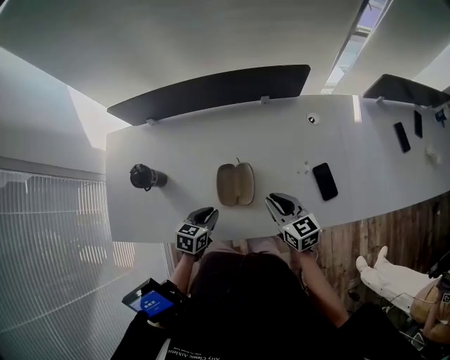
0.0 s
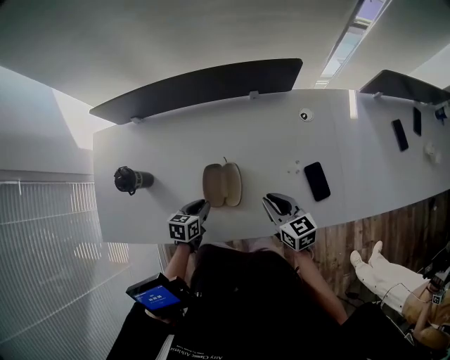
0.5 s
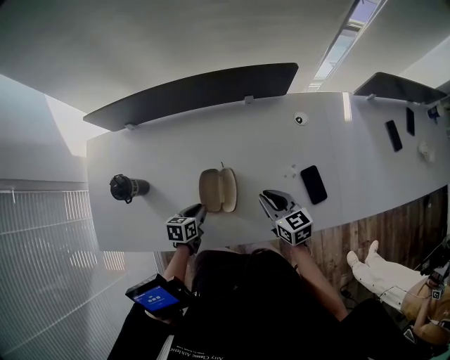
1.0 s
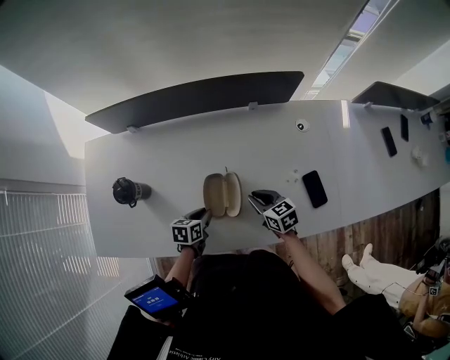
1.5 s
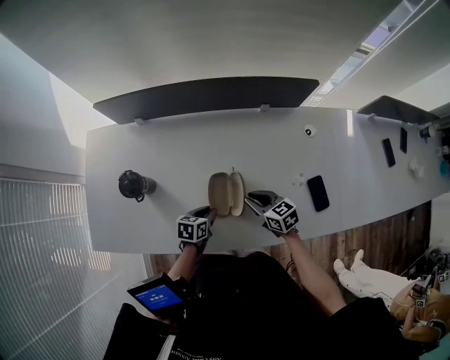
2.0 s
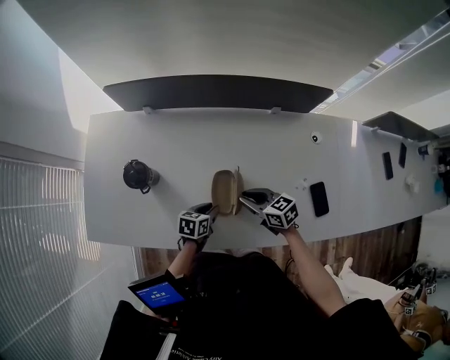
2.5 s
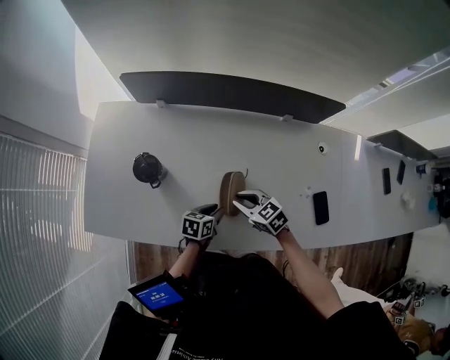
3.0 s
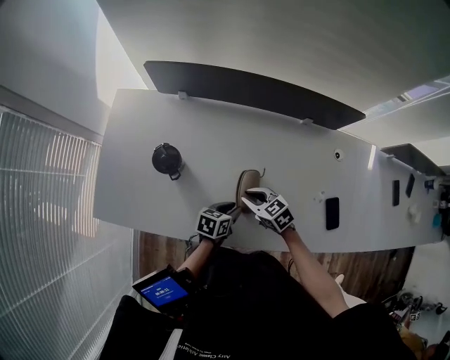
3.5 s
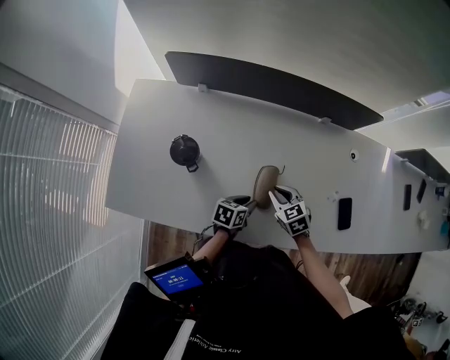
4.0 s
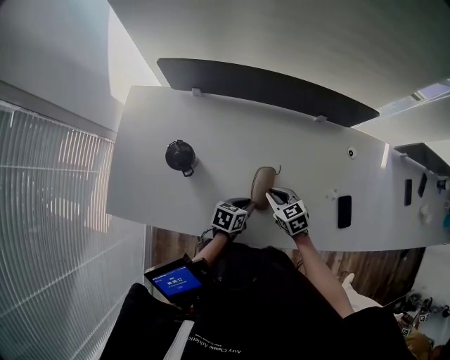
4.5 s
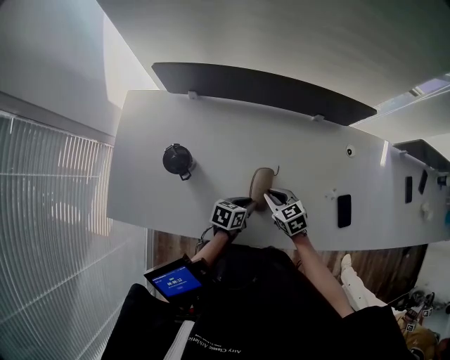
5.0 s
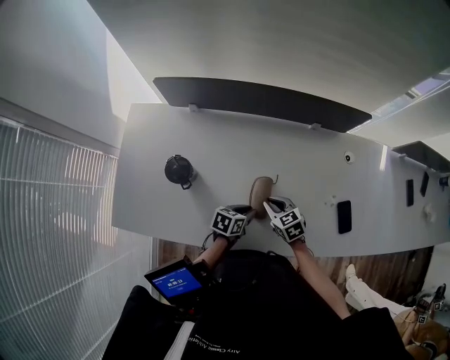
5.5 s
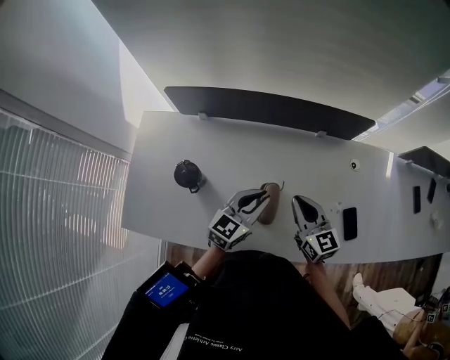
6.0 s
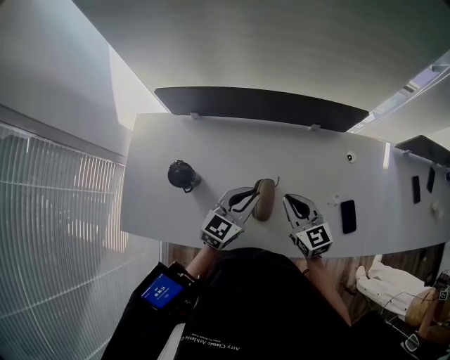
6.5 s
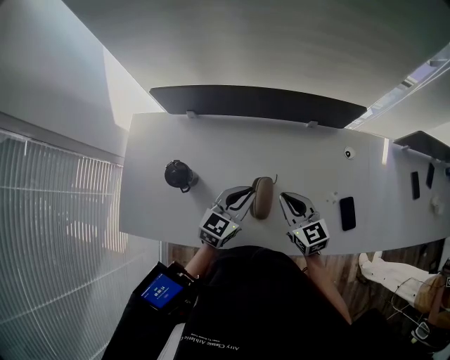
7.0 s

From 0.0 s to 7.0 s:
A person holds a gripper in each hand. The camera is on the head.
From 0.0 s to 2.0 s: The right gripper shifts approximately 10 cm downward and to the left. Meanwhile the left gripper travels downward by some 10 cm.
From 2.0 s to 3.5 s: The right gripper changes place by some 15 cm, and turns by approximately 20 degrees.
From 3.5 s to 5.0 s: There are only small adjustments of the grippers.
From 5.0 s to 7.0 s: Both grippers travel together upward, some 15 cm. The right gripper changes its angle by about 20 degrees. Meanwhile the left gripper swivels about 40 degrees.

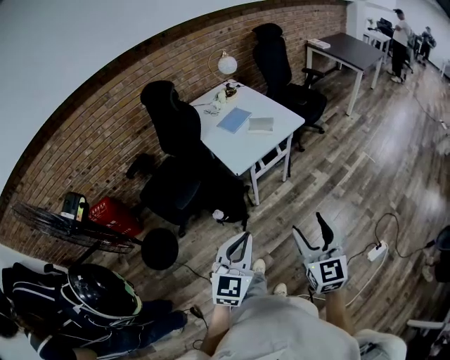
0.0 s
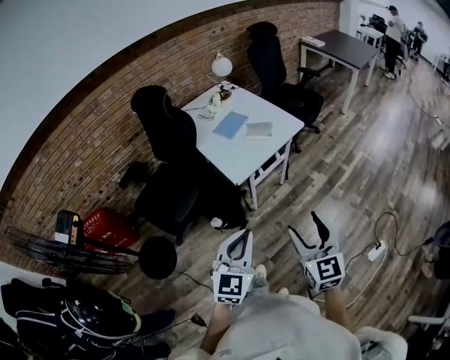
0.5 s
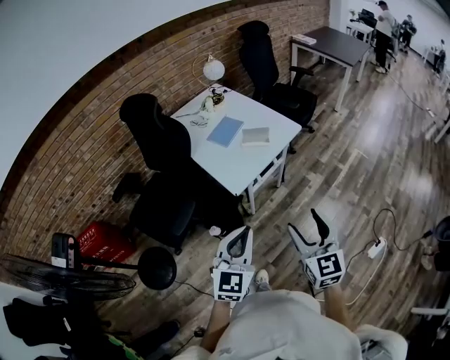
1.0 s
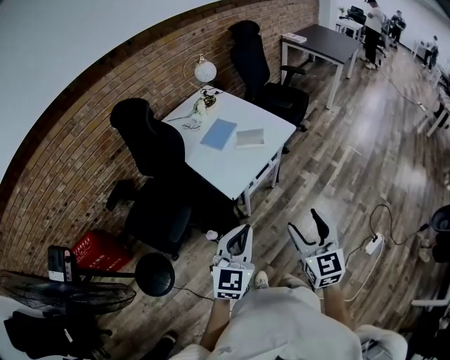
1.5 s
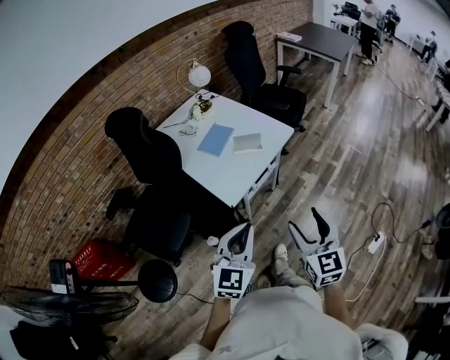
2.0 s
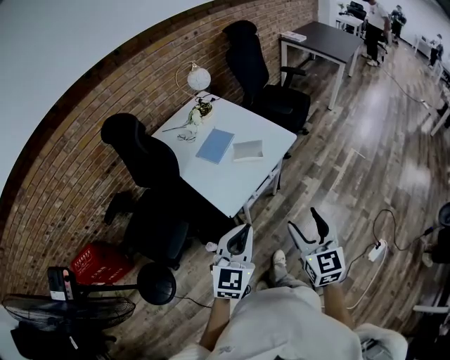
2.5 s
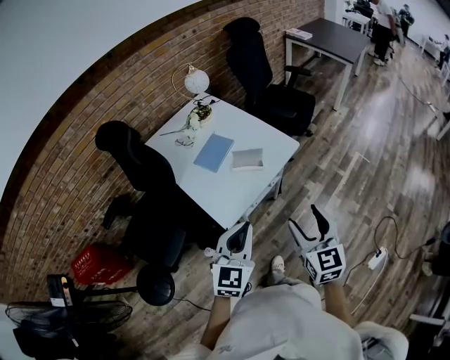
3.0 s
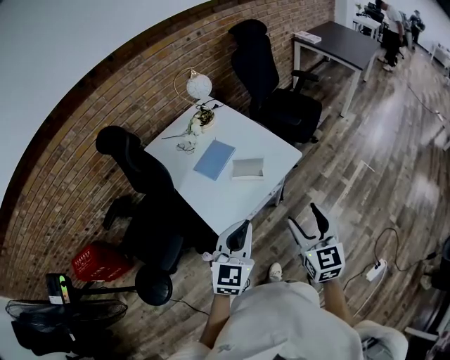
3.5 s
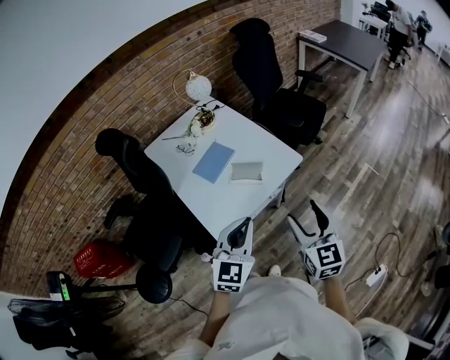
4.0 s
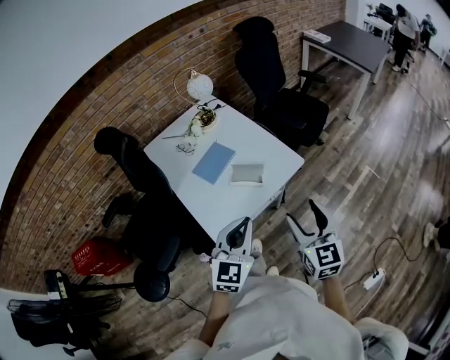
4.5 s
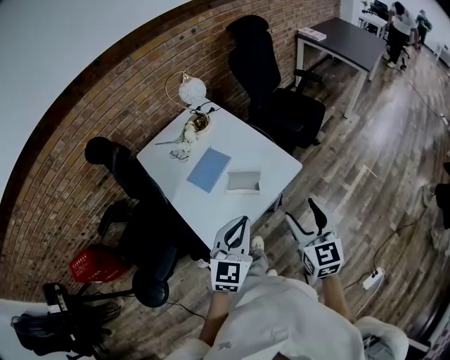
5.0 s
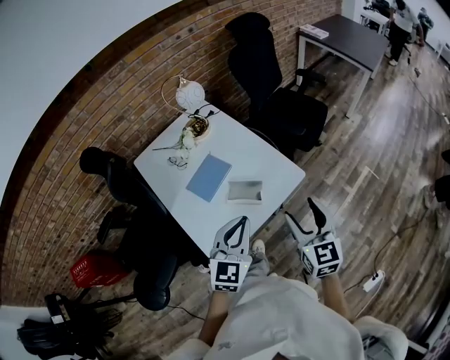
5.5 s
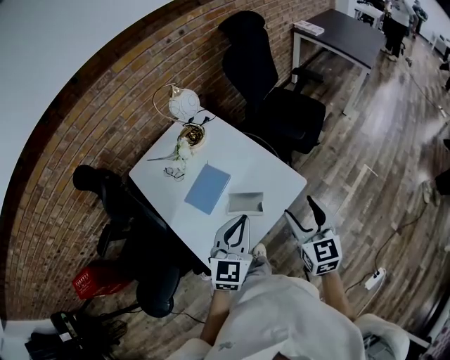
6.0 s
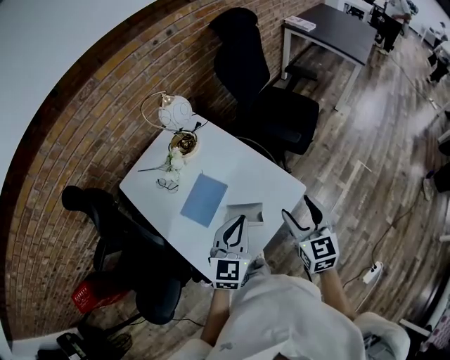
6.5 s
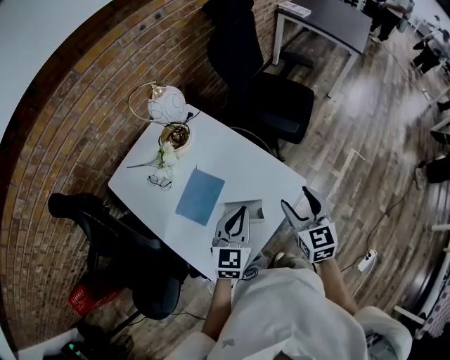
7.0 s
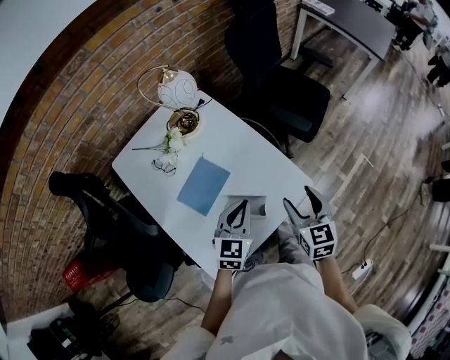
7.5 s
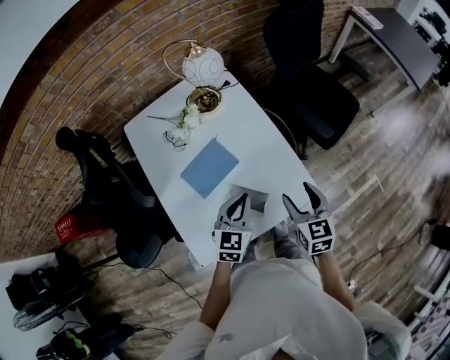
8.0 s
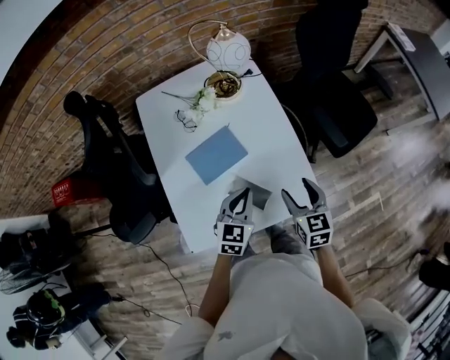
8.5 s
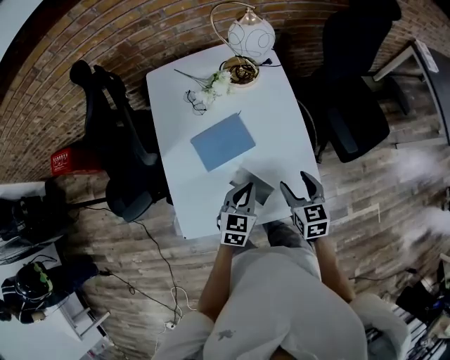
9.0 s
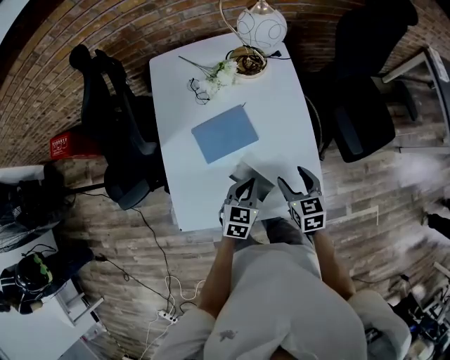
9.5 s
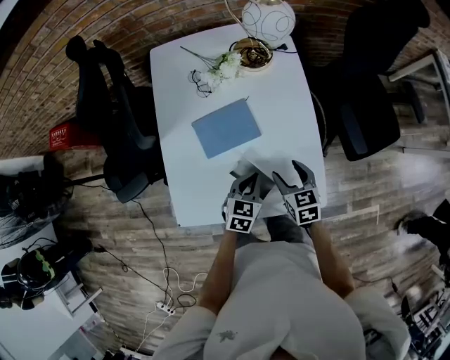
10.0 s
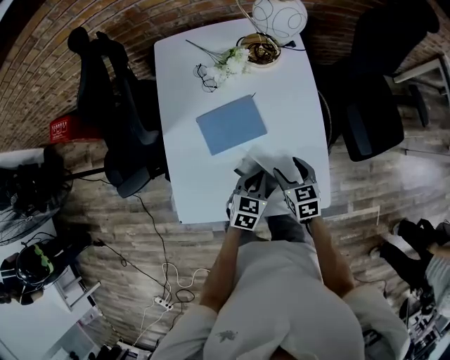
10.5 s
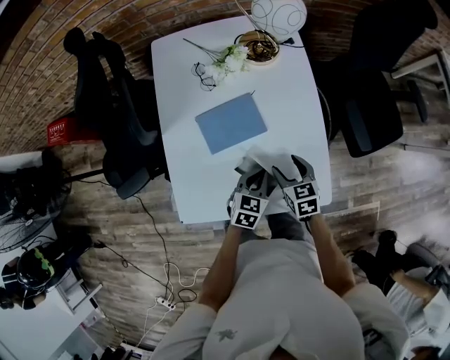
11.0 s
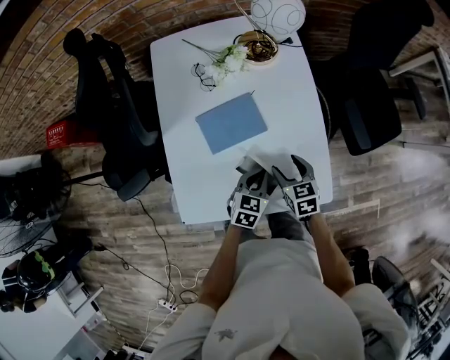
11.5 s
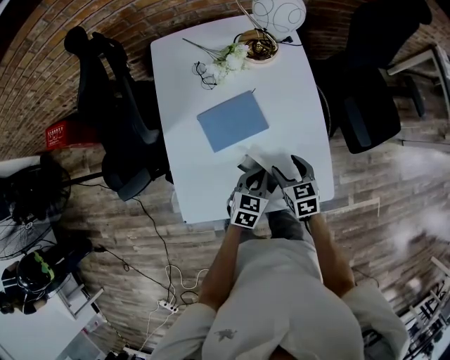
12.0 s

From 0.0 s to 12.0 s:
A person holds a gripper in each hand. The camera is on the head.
From 0.0 s to 2.0 s: Both grippers travel together forward, approximately 20 cm.
From 2.0 s to 4.0 s: The right gripper is displaced forward by roughly 25 cm. The left gripper shifts some 25 cm forward and to the right.
From 4.0 s to 6.0 s: Both grippers travel together forward, approximately 20 cm.
From 6.0 s to 8.0 s: The right gripper is displaced forward and downward by roughly 20 cm, and swivels about 20 degrees, while the left gripper heads downward and forward, covering about 20 cm, and changes its angle by about 20 degrees.
From 8.0 s to 10.0 s: The left gripper heads downward, covering some 15 cm, and changes its angle by some 20 degrees, while the right gripper moves downward and forward, roughly 15 cm, and turns by some 30 degrees.
From 10.0 s to 12.0 s: There are only small adjustments of the grippers.

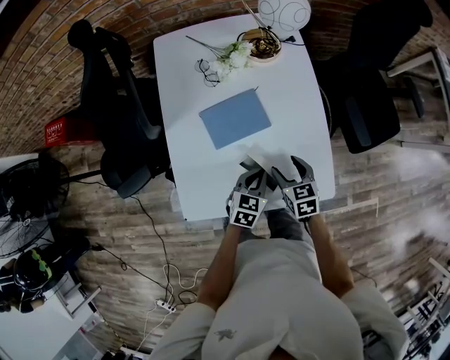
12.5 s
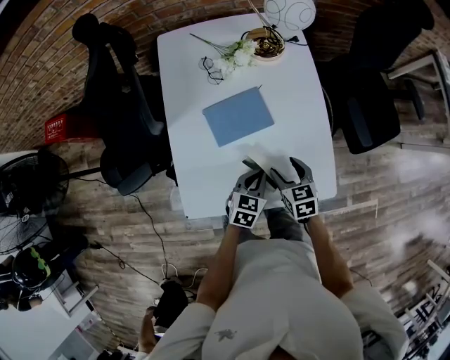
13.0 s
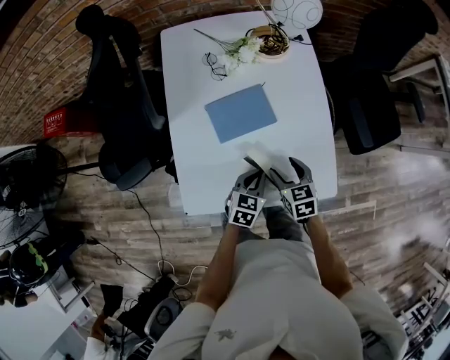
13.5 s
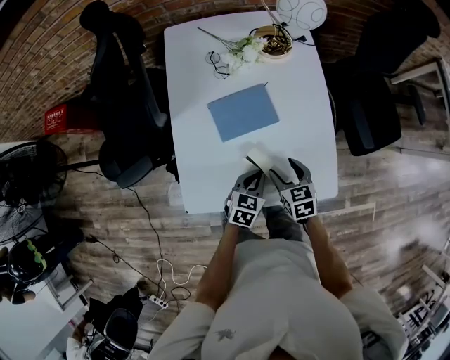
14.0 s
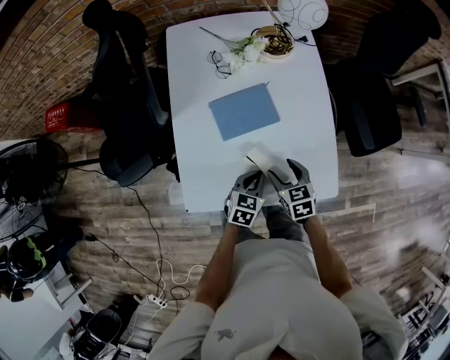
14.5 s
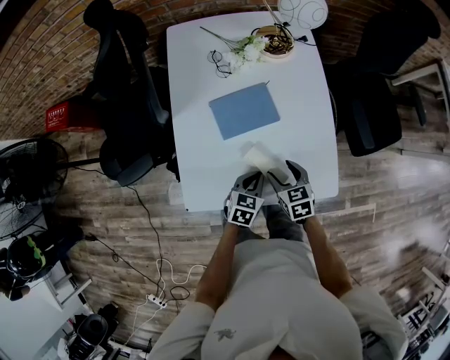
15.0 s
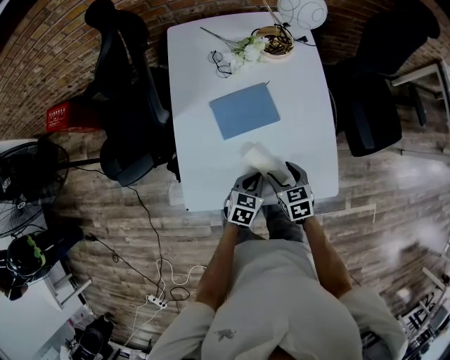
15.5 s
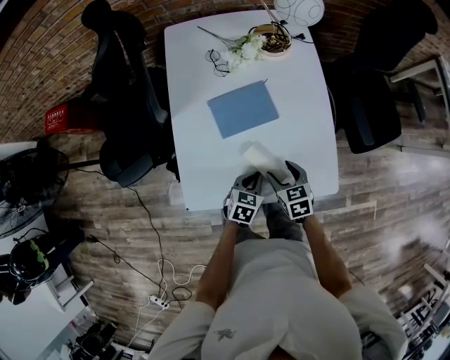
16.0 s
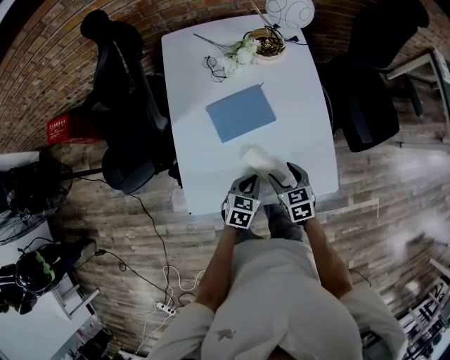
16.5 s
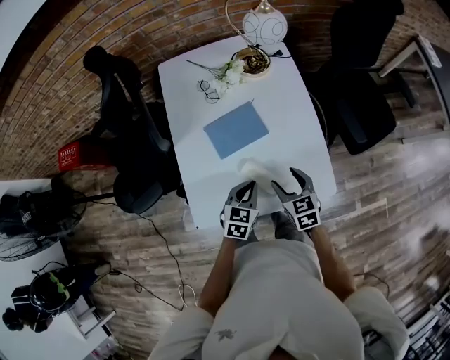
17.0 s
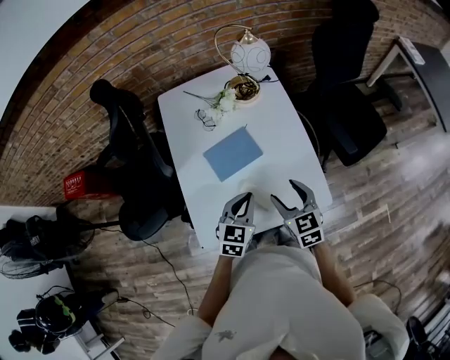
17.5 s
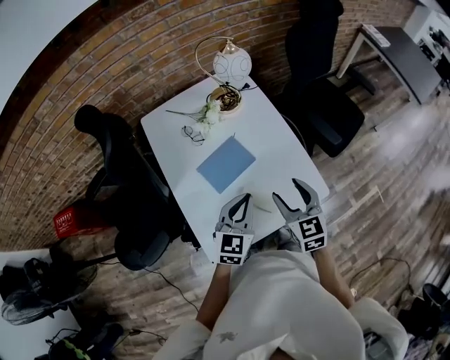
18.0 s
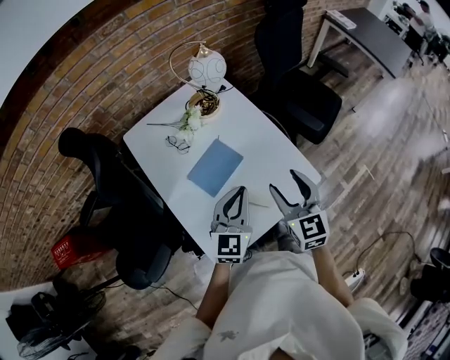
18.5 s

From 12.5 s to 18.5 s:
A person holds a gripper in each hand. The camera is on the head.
From 12.5 s to 14.5 s: The grippers stay close to where they were, moving slightly.
From 14.5 s to 16.5 s: The grippers stay close to where they were, moving slightly.
From 16.5 s to 18.5 s: Both grippers move upward, some 25 cm. The right gripper turns by some 40 degrees. The left gripper points its fingers about 30 degrees further upward.

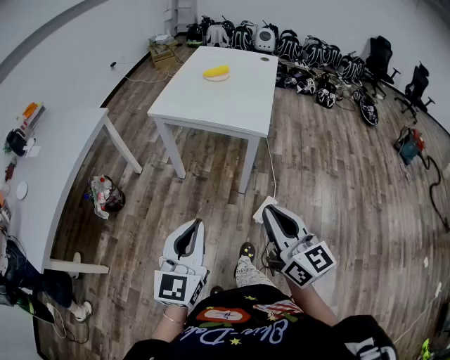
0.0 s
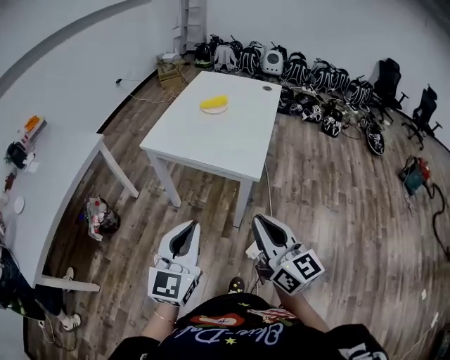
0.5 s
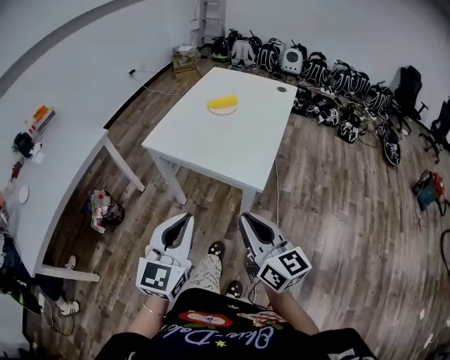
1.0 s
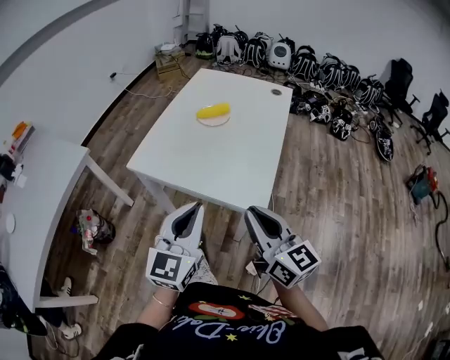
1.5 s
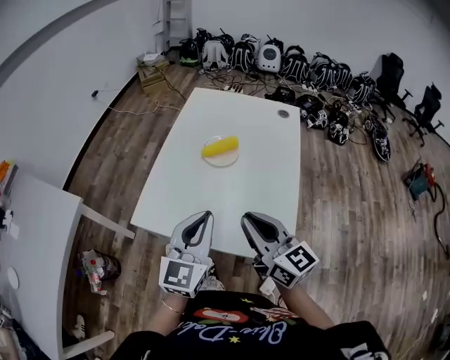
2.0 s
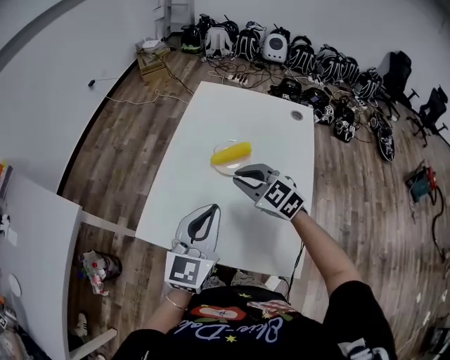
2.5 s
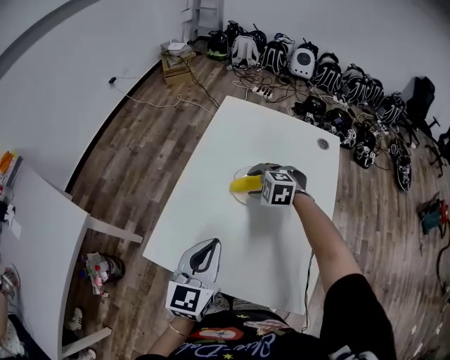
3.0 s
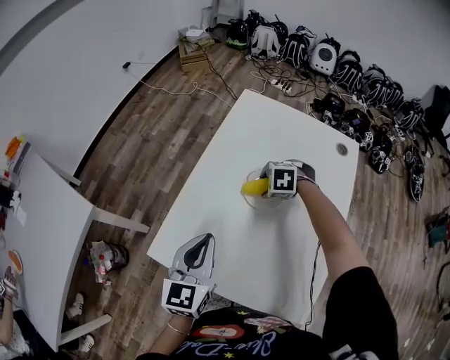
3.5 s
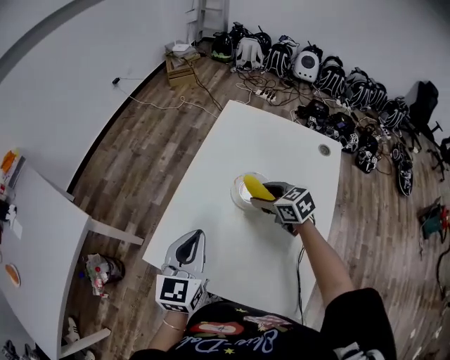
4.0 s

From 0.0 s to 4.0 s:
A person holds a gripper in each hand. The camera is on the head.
From 0.0 s to 2.0 s: Both grippers are carried forward, some 60 cm.
From 2.0 s to 4.0 s: The left gripper changes place by about 20 cm; the right gripper ends up approximately 35 cm from where it was, tilts its fingers some 40 degrees downward, and opens.
